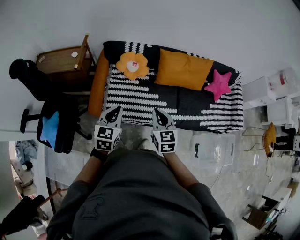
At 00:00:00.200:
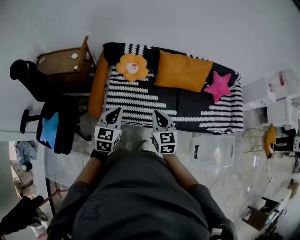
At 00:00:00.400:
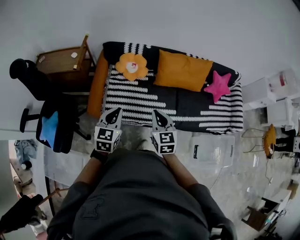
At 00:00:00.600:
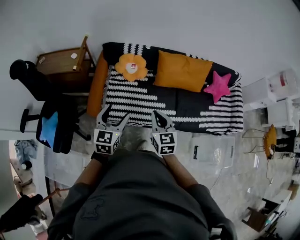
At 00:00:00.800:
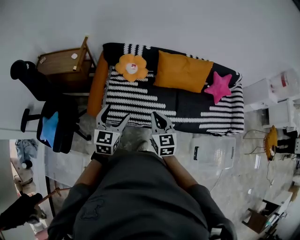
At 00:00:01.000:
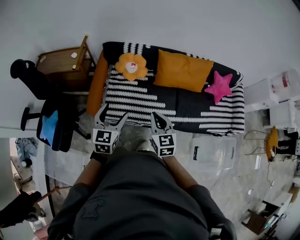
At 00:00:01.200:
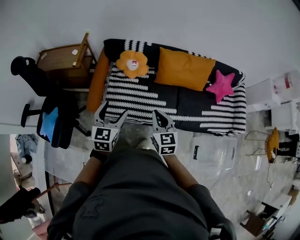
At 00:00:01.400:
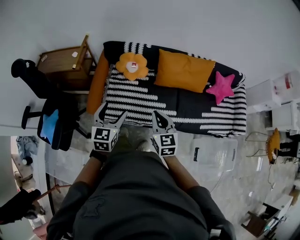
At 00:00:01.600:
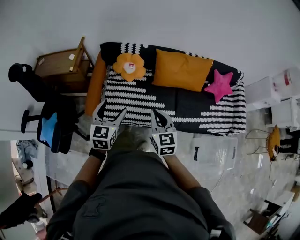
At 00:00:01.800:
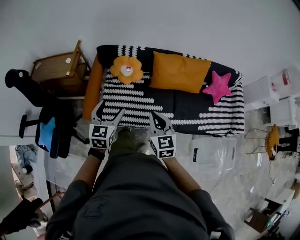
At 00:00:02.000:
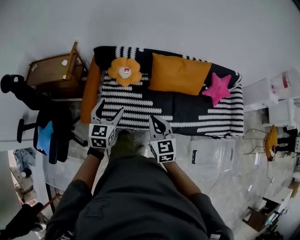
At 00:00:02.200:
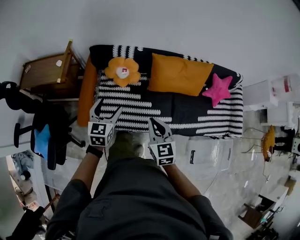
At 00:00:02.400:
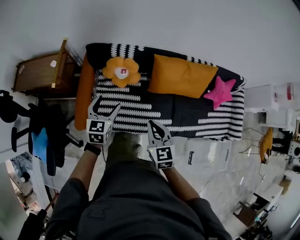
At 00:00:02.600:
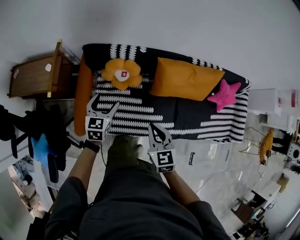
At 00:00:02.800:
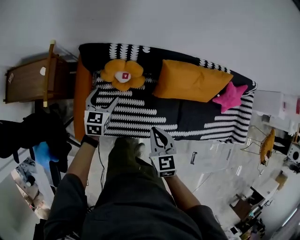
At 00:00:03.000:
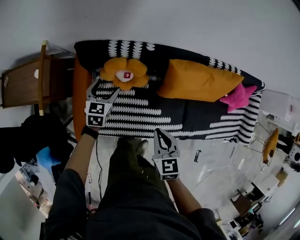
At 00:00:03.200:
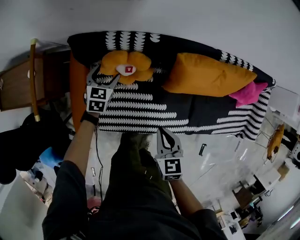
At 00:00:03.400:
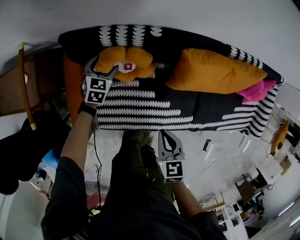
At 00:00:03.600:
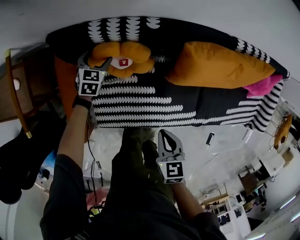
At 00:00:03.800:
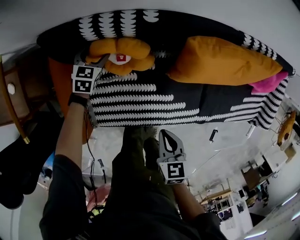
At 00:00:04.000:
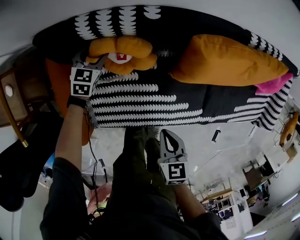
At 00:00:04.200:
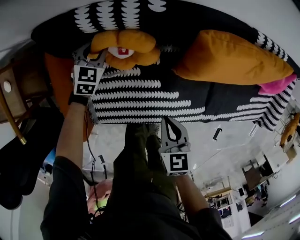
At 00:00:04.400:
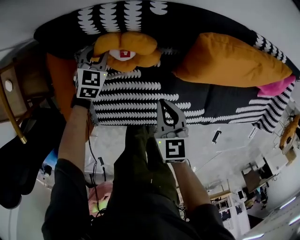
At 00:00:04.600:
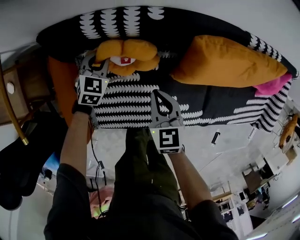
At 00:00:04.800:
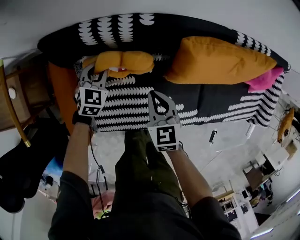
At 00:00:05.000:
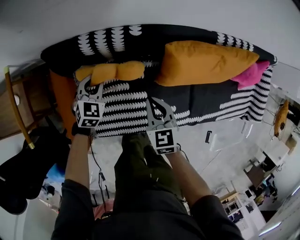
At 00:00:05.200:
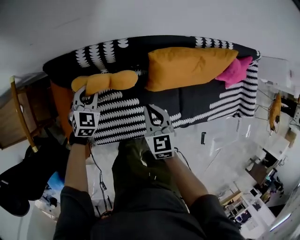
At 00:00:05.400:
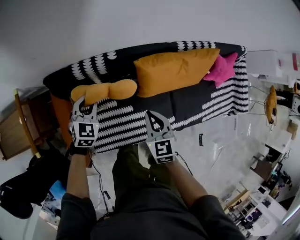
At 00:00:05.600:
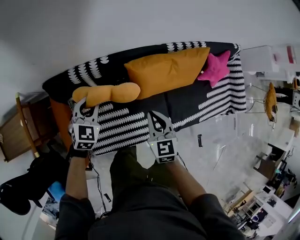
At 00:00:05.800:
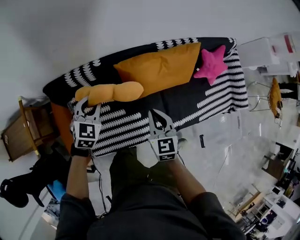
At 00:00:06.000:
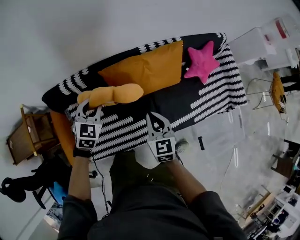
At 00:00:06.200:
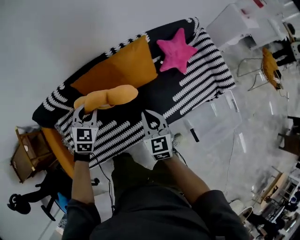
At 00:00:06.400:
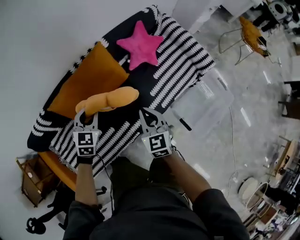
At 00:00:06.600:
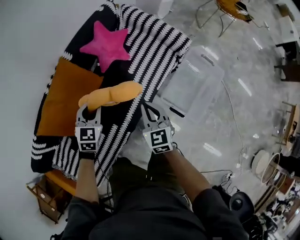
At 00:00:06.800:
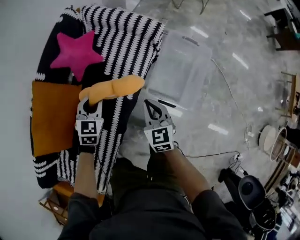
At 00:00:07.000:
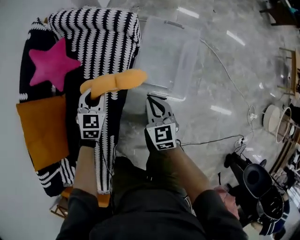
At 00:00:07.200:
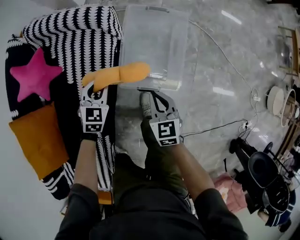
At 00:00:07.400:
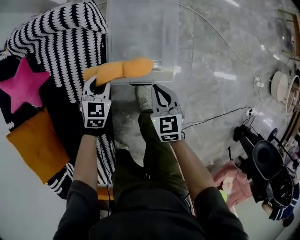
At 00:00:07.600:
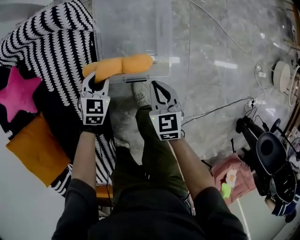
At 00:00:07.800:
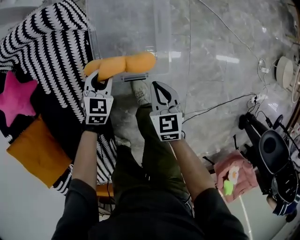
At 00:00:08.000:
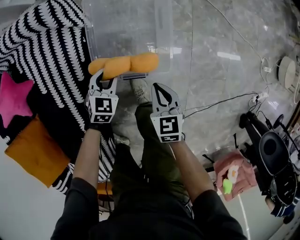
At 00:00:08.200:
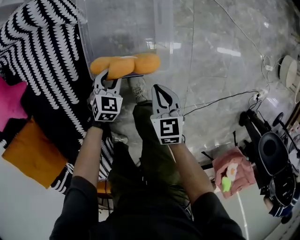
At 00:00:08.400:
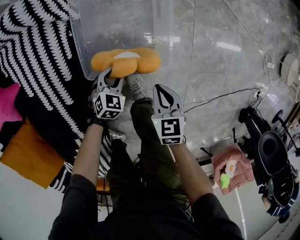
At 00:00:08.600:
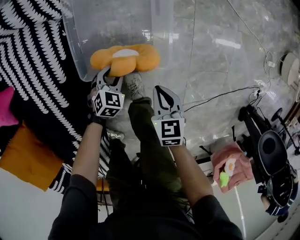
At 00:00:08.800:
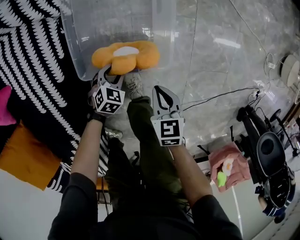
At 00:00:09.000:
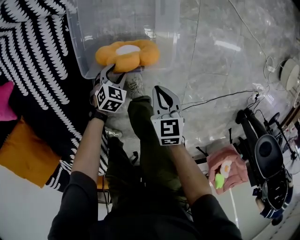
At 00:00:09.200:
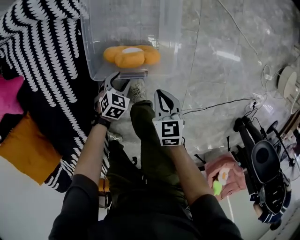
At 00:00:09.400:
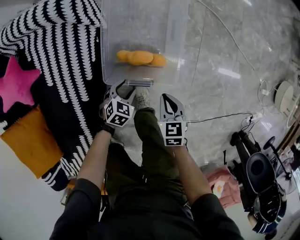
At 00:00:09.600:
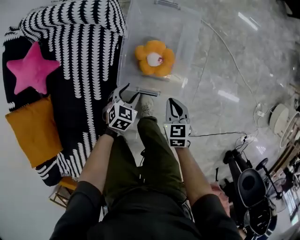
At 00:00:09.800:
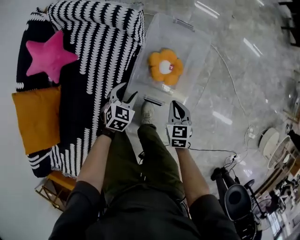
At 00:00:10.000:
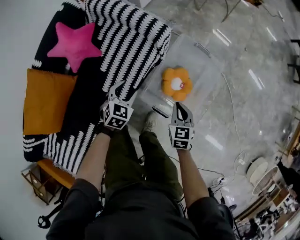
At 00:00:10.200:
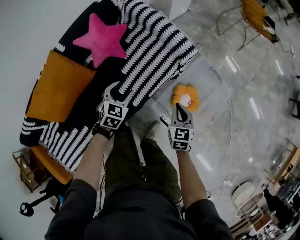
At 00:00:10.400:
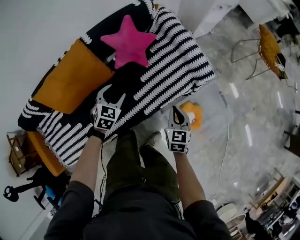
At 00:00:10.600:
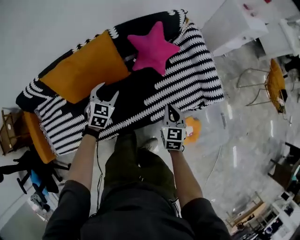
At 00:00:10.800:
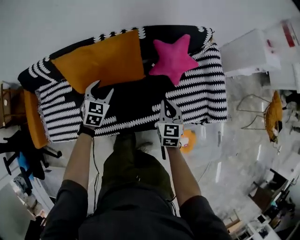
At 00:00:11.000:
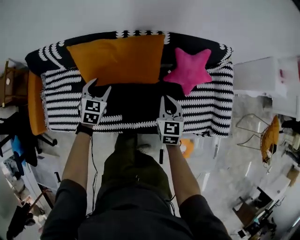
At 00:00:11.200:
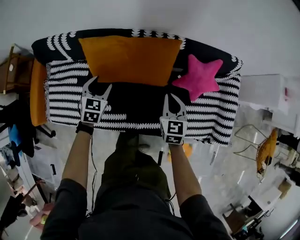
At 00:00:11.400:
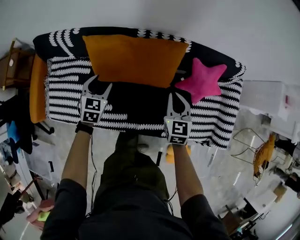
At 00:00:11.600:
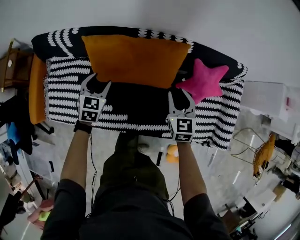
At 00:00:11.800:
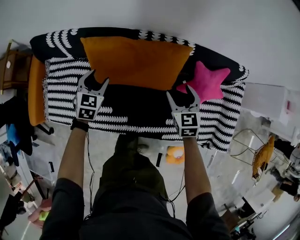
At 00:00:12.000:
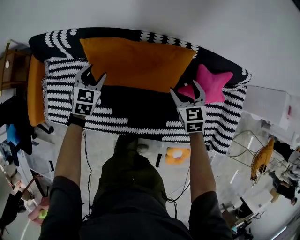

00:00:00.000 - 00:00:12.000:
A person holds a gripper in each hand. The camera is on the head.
00:00:00.000 - 00:00:01.600: The right gripper goes about 5 cm to the right. Meanwhile the left gripper moves about 5 cm, and opens up.
00:00:01.600 - 00:00:03.000: The left gripper shifts some 50 cm forward and downward, and changes its angle by some 20 degrees, while the right gripper shifts some 35 cm forward and downward, and rotates approximately 20 degrees.
00:00:03.000 - 00:00:04.400: The grippers both shift downward and forward by approximately 25 cm. The left gripper swivels approximately 20 degrees, and closes its fingers.
00:00:04.400 - 00:00:06.000: The left gripper travels upward and to the right by about 50 cm; the right gripper goes about 35 cm to the right and upward, and swivels approximately 20 degrees.
00:00:06.000 - 00:00:07.600: The two grippers travel together, about 80 cm. The right gripper changes its angle by about 70 degrees. The left gripper turns by about 70 degrees.
00:00:07.600 - 00:00:09.000: The left gripper is displaced downward by approximately 25 cm, and changes its angle by approximately 20 degrees; the right gripper heads downward, covering some 15 cm.
00:00:09.000 - 00:00:10.400: The right gripper ends up roughly 50 cm from where it was, and rotates around the line of its fingers by about 40 degrees, counterclockwise from behind. Meanwhile the left gripper shifts by approximately 60 cm, and turns by roughly 70 degrees.
00:00:10.400 - 00:00:12.000: Both grippers are carried approximately 50 cm. The right gripper rotates roughly 60 degrees, and opens up; the left gripper changes its angle by roughly 40 degrees.

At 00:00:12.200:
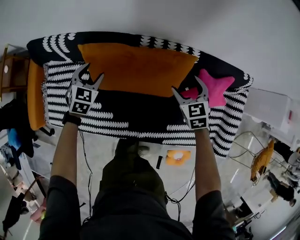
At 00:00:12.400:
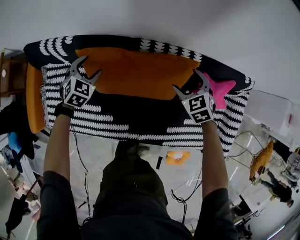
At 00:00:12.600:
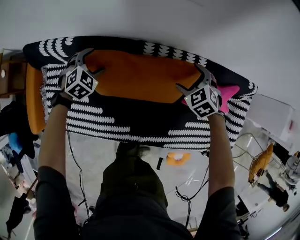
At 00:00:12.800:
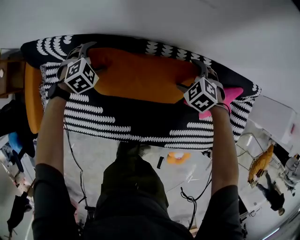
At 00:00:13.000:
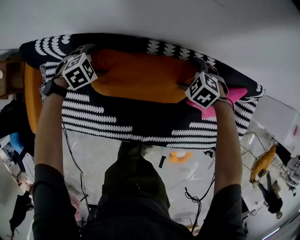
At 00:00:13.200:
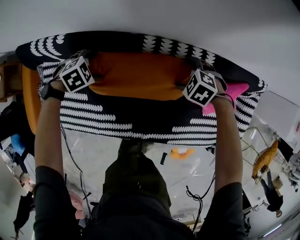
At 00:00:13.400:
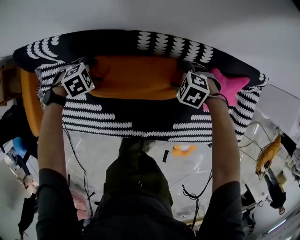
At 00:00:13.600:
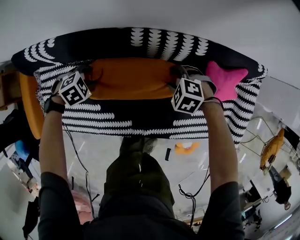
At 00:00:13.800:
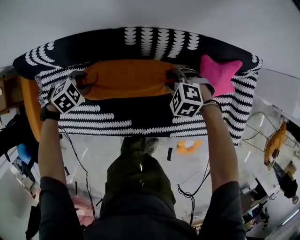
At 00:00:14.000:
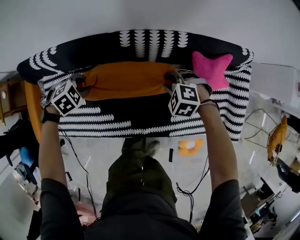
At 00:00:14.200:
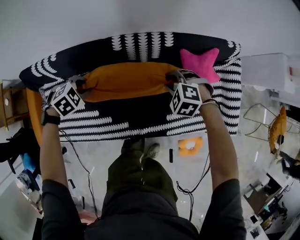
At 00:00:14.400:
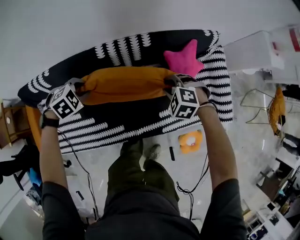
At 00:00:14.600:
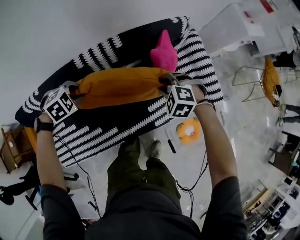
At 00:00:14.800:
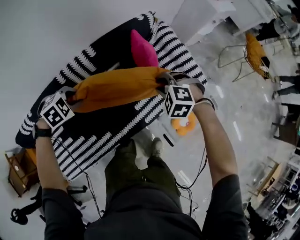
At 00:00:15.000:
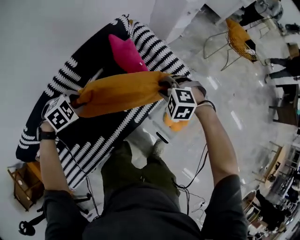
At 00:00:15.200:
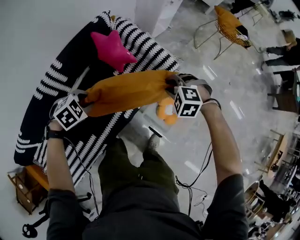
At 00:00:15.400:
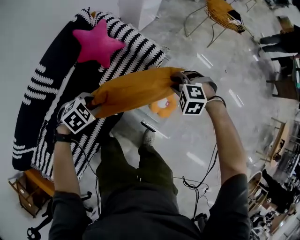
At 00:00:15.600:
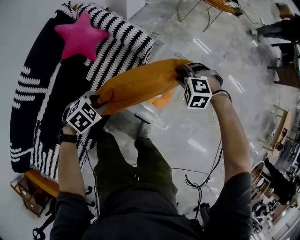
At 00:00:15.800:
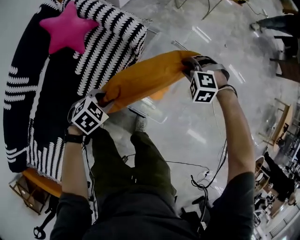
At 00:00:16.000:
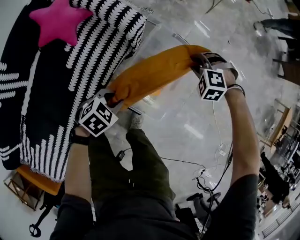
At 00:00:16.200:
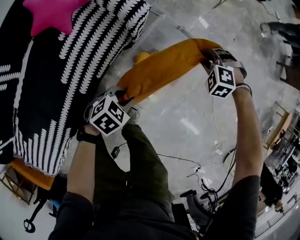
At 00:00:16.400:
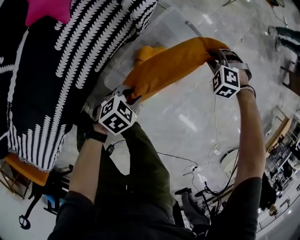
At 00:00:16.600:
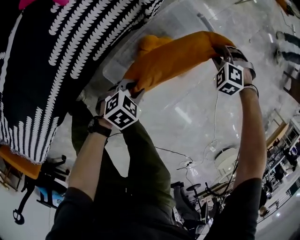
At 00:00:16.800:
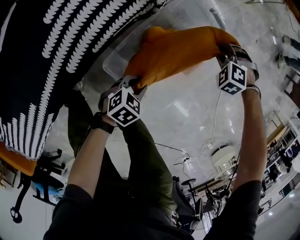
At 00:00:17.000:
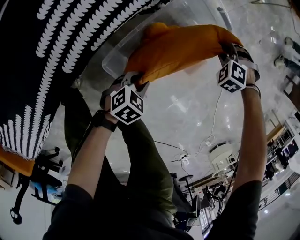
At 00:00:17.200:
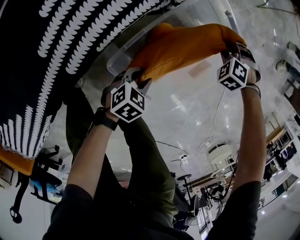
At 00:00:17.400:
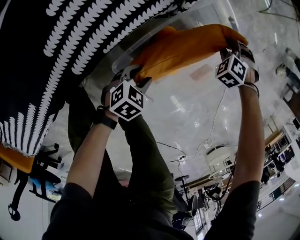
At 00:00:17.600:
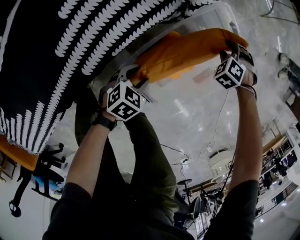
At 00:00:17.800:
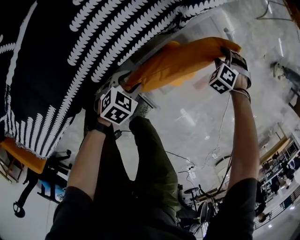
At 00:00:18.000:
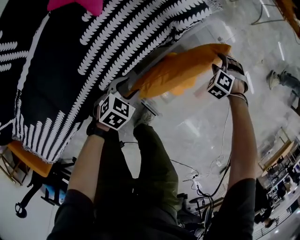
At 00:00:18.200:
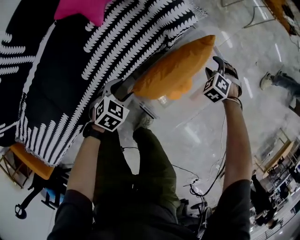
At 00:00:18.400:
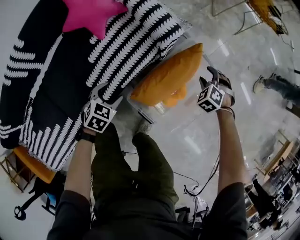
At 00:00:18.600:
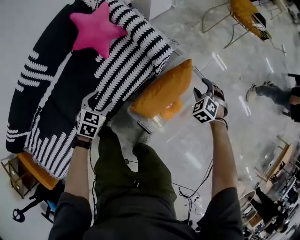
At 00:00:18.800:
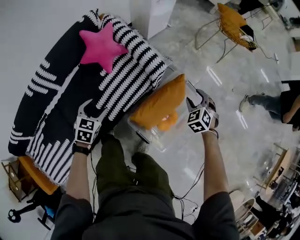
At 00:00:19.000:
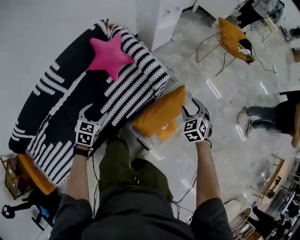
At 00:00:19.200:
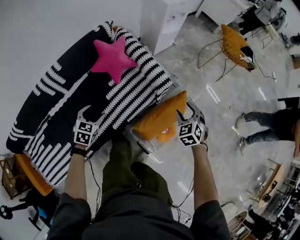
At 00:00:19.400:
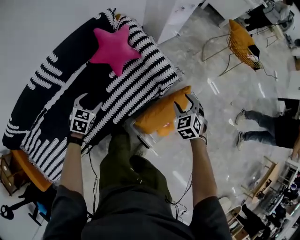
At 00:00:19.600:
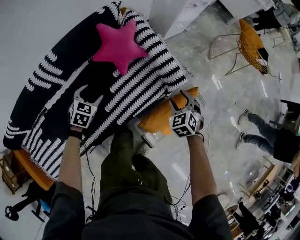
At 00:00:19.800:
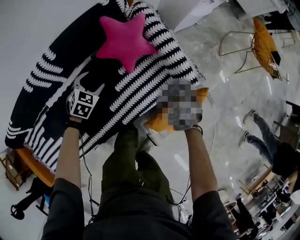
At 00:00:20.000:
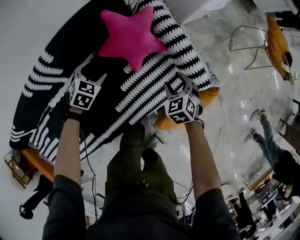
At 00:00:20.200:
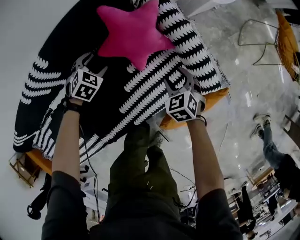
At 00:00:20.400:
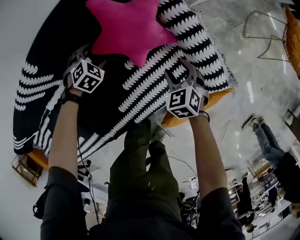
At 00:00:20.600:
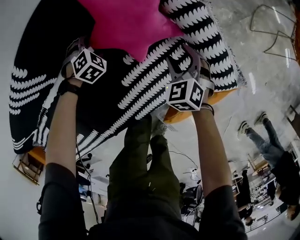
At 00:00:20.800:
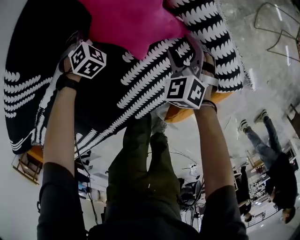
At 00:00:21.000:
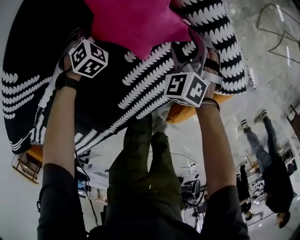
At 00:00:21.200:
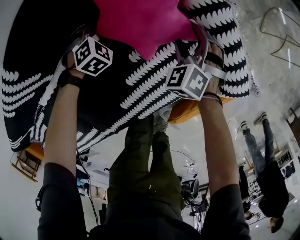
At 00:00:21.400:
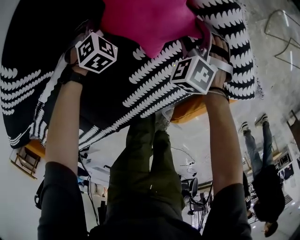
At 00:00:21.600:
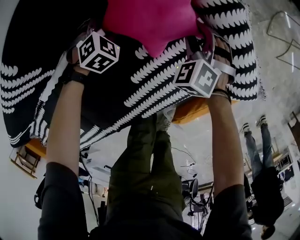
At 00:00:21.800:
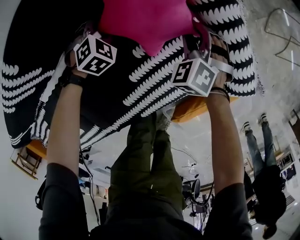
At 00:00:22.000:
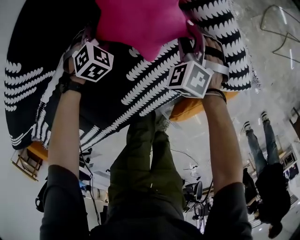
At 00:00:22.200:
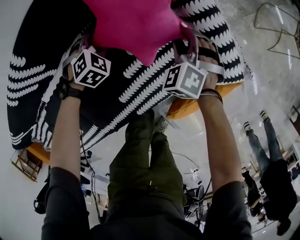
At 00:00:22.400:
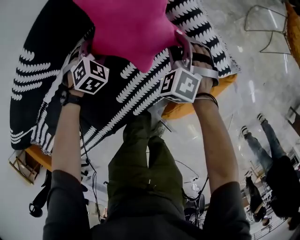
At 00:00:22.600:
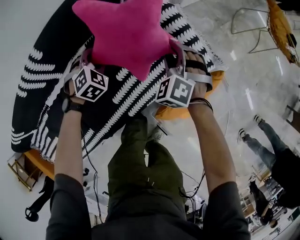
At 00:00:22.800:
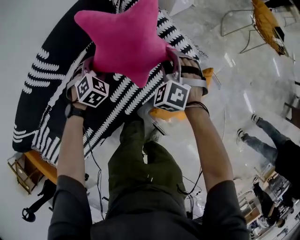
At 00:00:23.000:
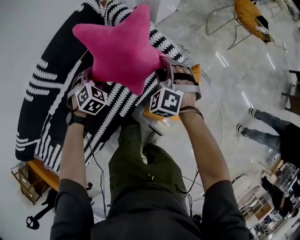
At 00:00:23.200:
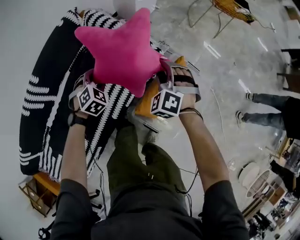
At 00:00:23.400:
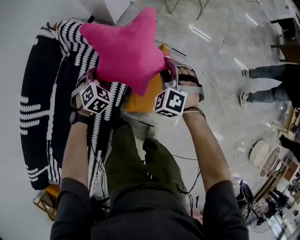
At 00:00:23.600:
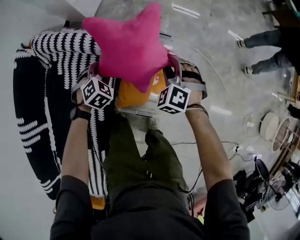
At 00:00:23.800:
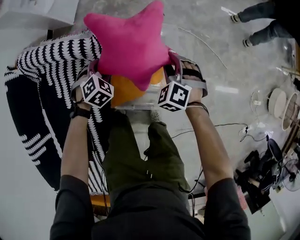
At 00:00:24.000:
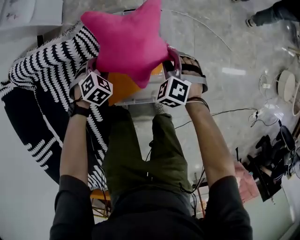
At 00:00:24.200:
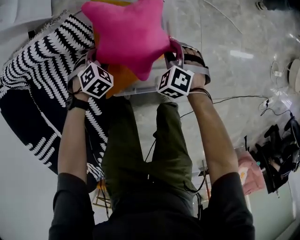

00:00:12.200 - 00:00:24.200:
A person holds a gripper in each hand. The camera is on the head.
00:00:12.200 - 00:00:13.800: The grippers both shift downward by about 10 cm. The right gripper swivels approximately 50 degrees, and closes its fingers, while the left gripper rotates approximately 50 degrees, and closes its fingers.
00:00:13.800 - 00:00:15.200: Both grippers are carried about 60 cm. The left gripper rotates around the line of its fingers by some 40 degrees, clockwise from behind; the right gripper rotates approximately 40 degrees.
00:00:15.200 - 00:00:16.600: Both grippers are carried some 40 cm. The left gripper turns by some 30 degrees.
00:00:16.600 - 00:00:18.200: The left gripper goes downward and returns, some 10 cm each way, and opens its fingers, while the right gripper moves some 10 cm downward and comes back.
00:00:18.200 - 00:00:19.800: The right gripper changes place by roughly 35 cm, and rotates roughly 30 degrees. Meanwhile the left gripper changes place by roughly 40 cm, and turns by approximately 20 degrees.
00:00:19.800 - 00:00:21.200: The left gripper moves downward and forward, some 30 cm, and changes its angle by some 30 degrees; the right gripper shifts roughly 30 cm downward, forward and to the left.
00:00:21.200 - 00:00:22.600: Both grippers move upward and backward, some 20 cm. The right gripper closes its fingers.
00:00:22.600 - 00:00:24.200: The pair of grippers is taken approximately 60 cm. The left gripper twists roughly 50 degrees clockwise, seen from behind. Meanwhile the right gripper rotates around the line of its fingers by approximately 50 degrees, clockwise from behind.
